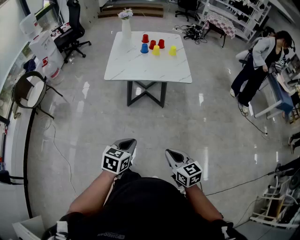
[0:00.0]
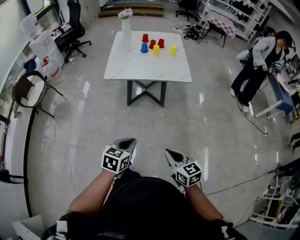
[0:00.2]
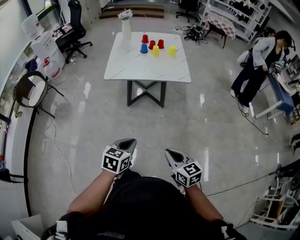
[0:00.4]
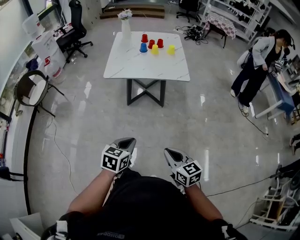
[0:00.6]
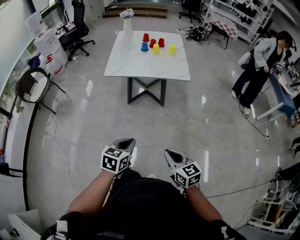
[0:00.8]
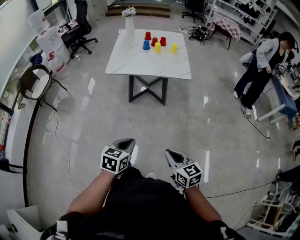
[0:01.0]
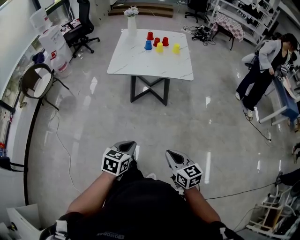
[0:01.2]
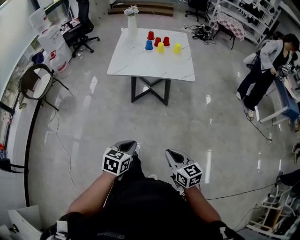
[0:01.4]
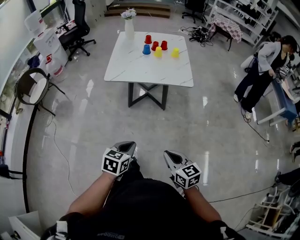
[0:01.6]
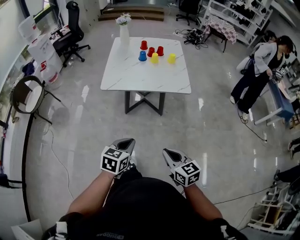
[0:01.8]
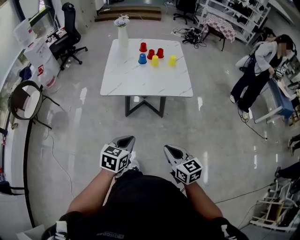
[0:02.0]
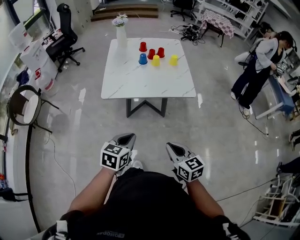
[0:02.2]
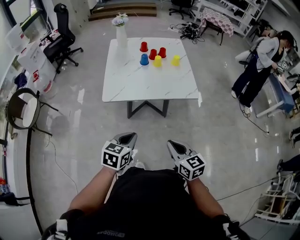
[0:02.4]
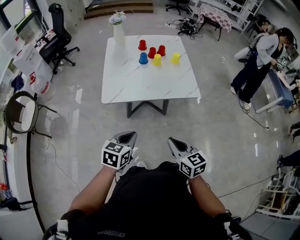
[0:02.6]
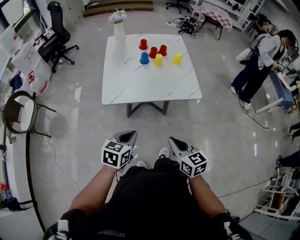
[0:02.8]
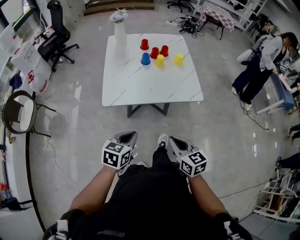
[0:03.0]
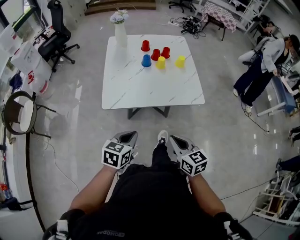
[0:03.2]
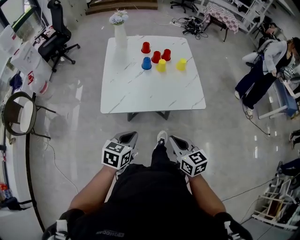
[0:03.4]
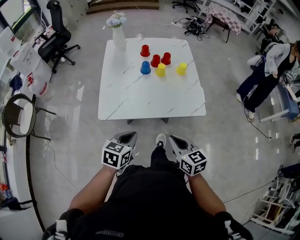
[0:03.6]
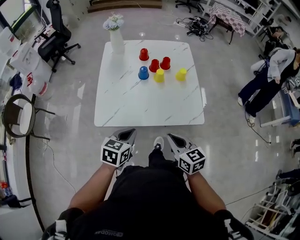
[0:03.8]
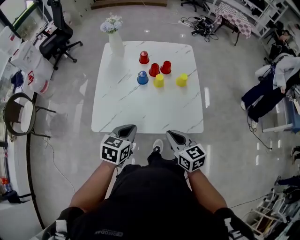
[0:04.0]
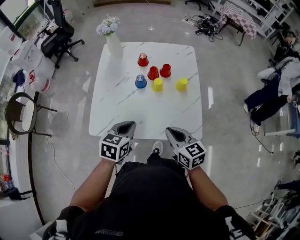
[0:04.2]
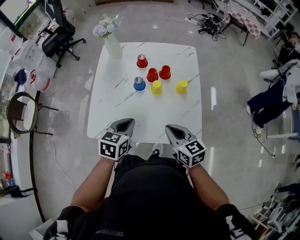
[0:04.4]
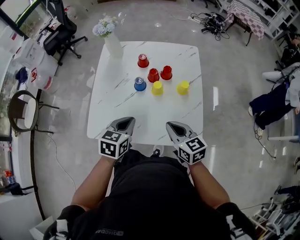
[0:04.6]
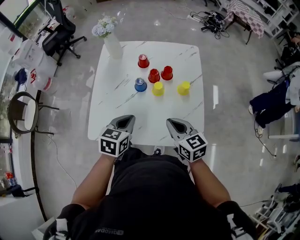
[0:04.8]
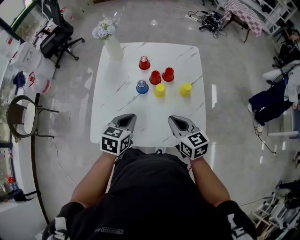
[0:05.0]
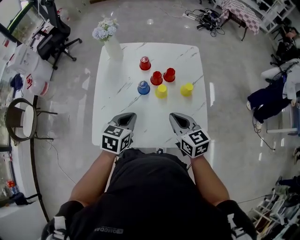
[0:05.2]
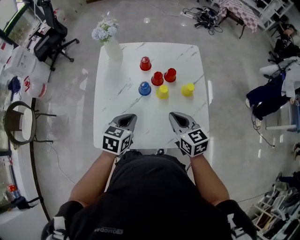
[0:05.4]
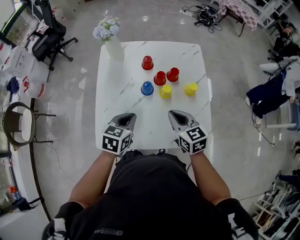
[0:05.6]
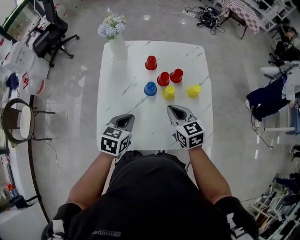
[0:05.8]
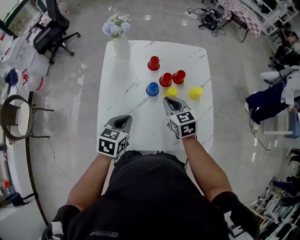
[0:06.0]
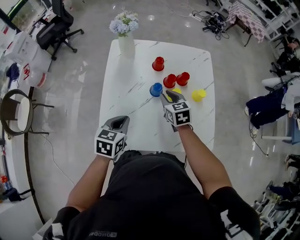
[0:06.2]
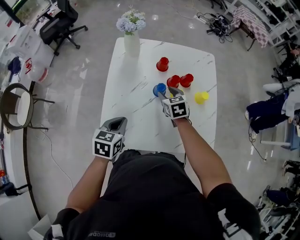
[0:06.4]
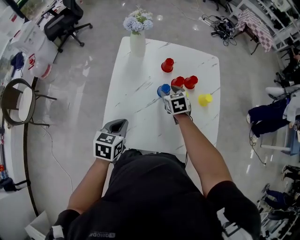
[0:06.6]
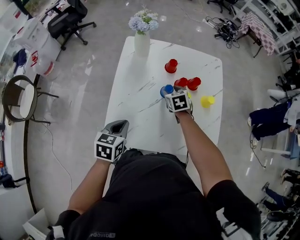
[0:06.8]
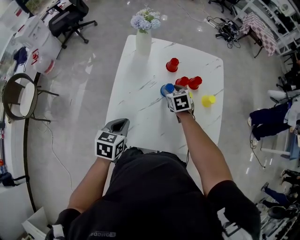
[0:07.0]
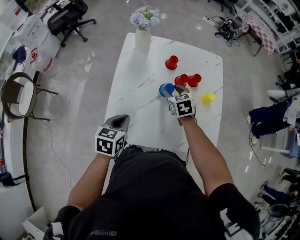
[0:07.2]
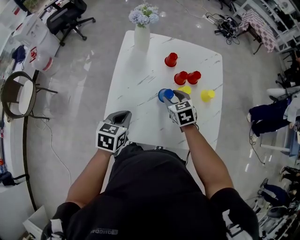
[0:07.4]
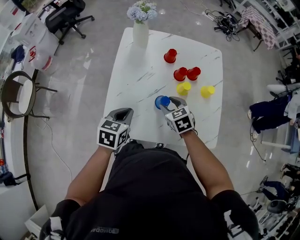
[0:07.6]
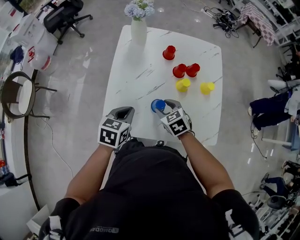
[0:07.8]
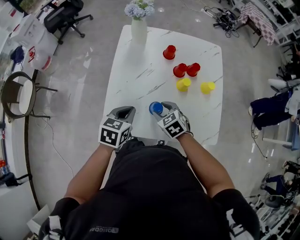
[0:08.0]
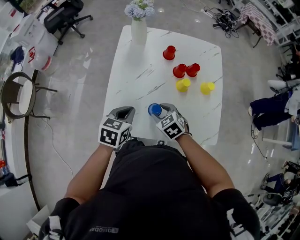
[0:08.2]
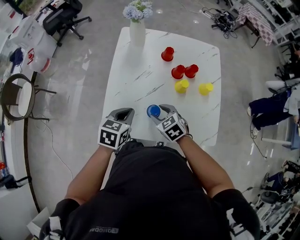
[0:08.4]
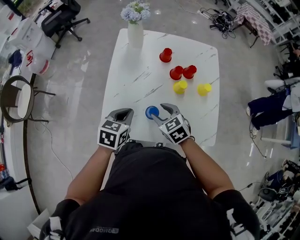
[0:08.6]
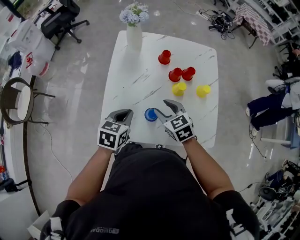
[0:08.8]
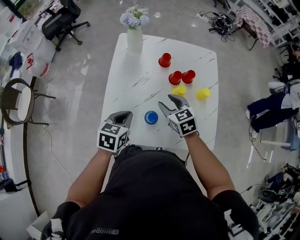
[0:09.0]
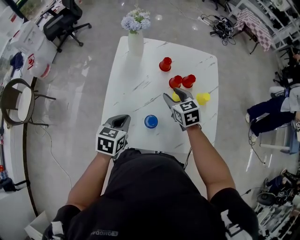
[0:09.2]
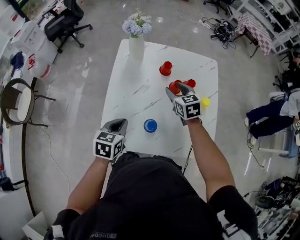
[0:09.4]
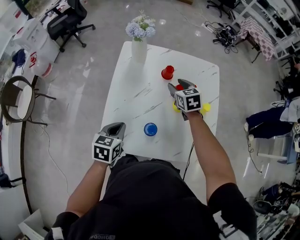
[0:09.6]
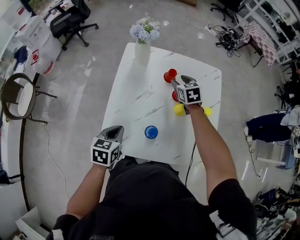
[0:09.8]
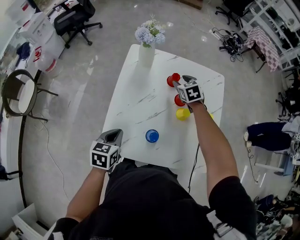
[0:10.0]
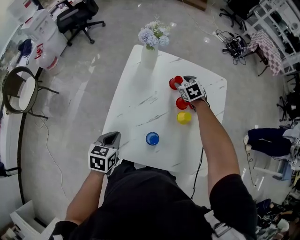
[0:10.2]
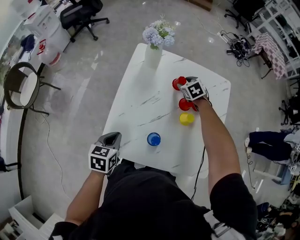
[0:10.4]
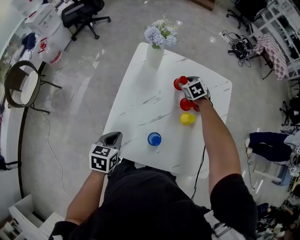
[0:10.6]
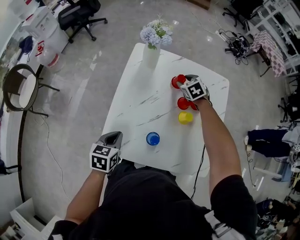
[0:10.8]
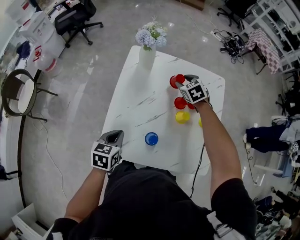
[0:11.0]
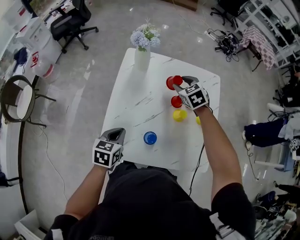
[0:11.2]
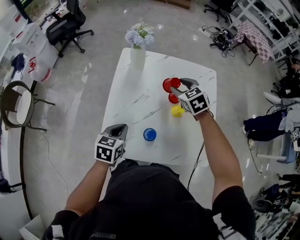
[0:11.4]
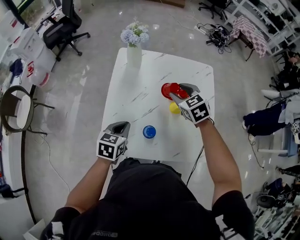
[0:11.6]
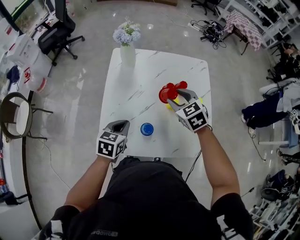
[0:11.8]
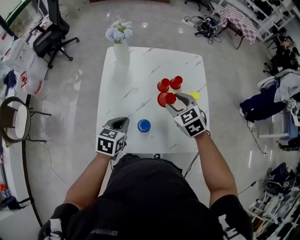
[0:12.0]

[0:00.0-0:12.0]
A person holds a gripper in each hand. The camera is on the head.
0:01.6 to 0:03.0: The left gripper travels forward and to the left by approximately 30 cm; the right gripper moves forward, about 25 cm.
0:03.0 to 0:04.4: The two grippers go approximately 35 cm forward.
0:04.4 to 0:06.0: The left gripper goes roughly 15 cm to the left and forward; the right gripper heads forward and to the left, covering approximately 20 cm.
0:06.0 to 0:07.6: The left gripper is displaced to the left by roughly 5 cm. The right gripper is displaced downward and to the left by approximately 10 cm, moves roughly 10 cm forward and comes back, turns by some 20 degrees, and opens up.
0:07.6 to 0:09.0: The right gripper ends up some 5 cm from where it was.
0:09.0 to 0:10.4: The right gripper heads forward, covering approximately 25 cm, and swivels roughly 20 degrees; the left gripper is displaced to the left by about 5 cm.
0:10.4 to 0:12.0: The left gripper is displaced to the right by about 10 cm, and rotates approximately 20 degrees, while the right gripper moves backward and upward, some 30 cm.

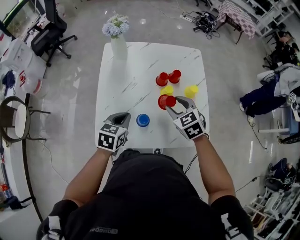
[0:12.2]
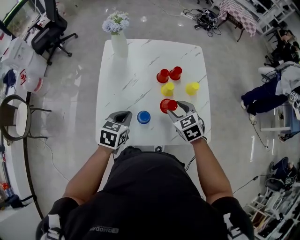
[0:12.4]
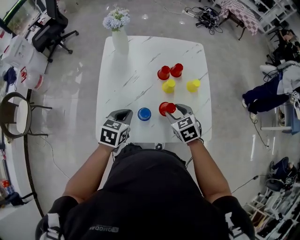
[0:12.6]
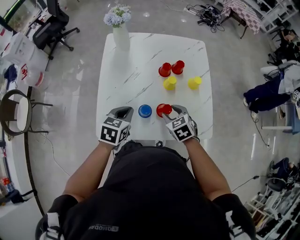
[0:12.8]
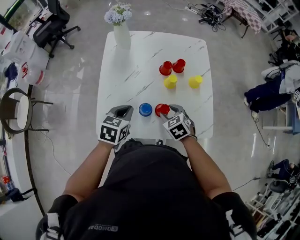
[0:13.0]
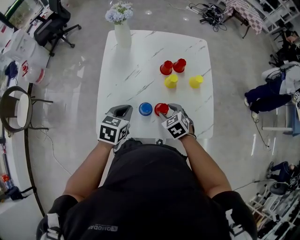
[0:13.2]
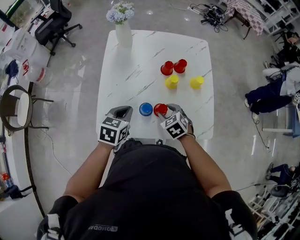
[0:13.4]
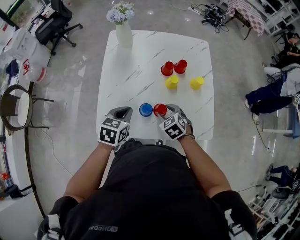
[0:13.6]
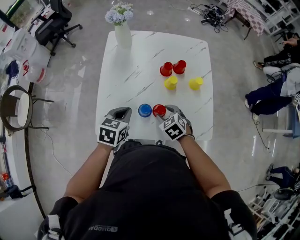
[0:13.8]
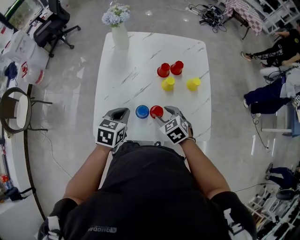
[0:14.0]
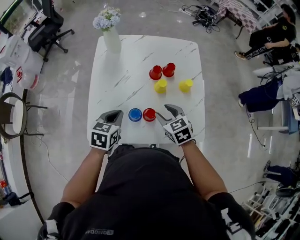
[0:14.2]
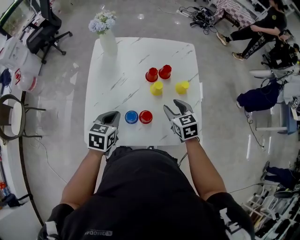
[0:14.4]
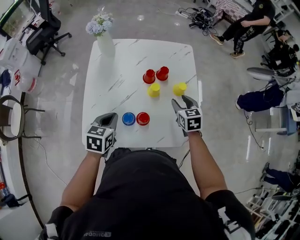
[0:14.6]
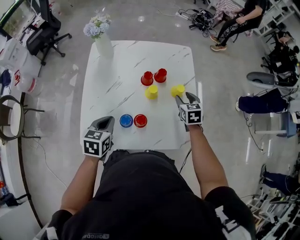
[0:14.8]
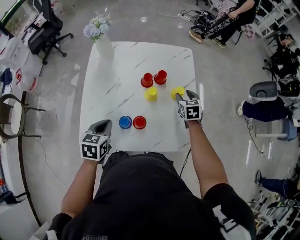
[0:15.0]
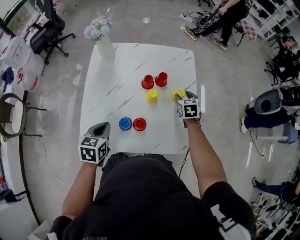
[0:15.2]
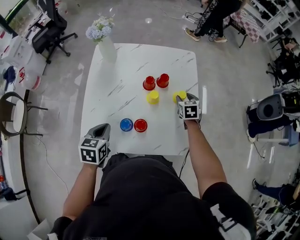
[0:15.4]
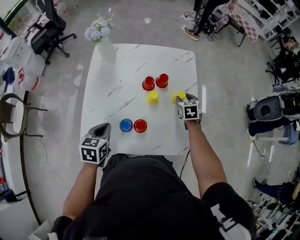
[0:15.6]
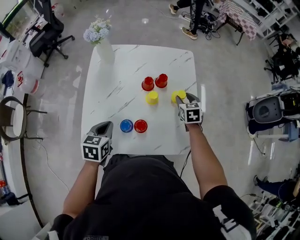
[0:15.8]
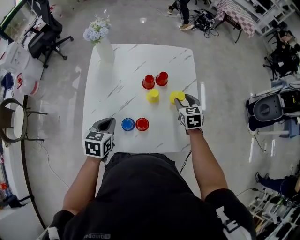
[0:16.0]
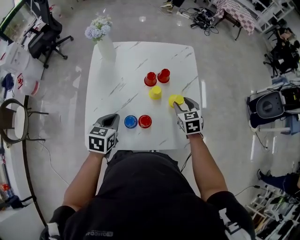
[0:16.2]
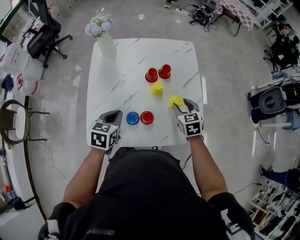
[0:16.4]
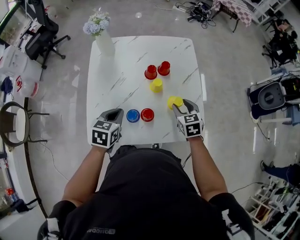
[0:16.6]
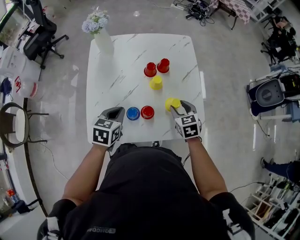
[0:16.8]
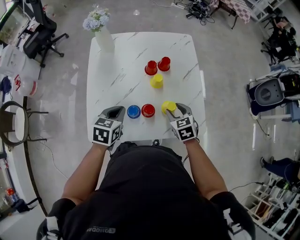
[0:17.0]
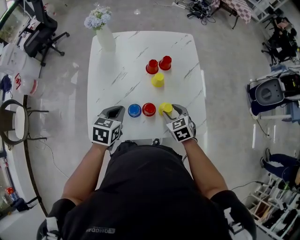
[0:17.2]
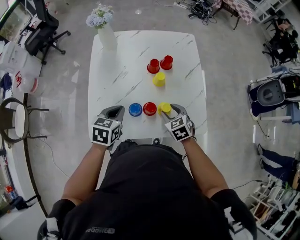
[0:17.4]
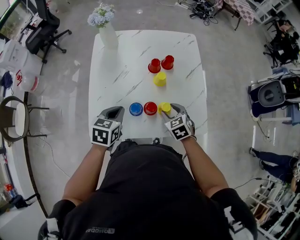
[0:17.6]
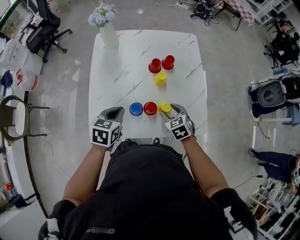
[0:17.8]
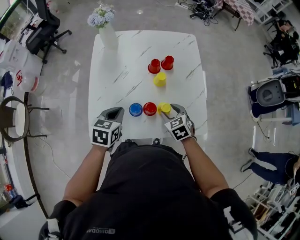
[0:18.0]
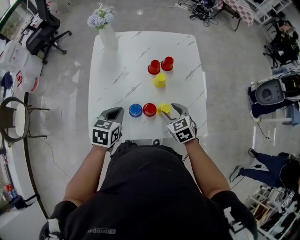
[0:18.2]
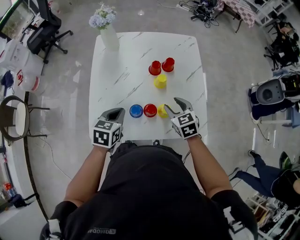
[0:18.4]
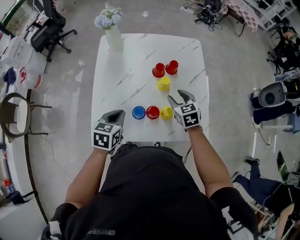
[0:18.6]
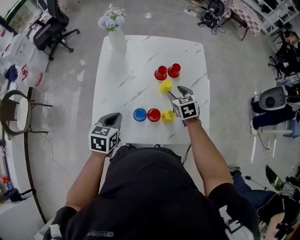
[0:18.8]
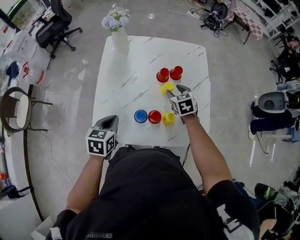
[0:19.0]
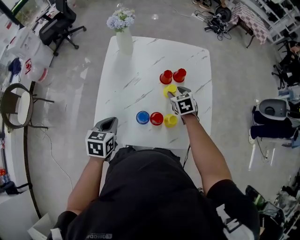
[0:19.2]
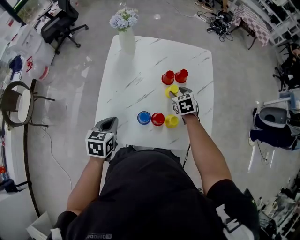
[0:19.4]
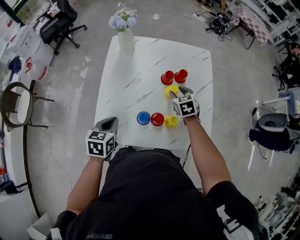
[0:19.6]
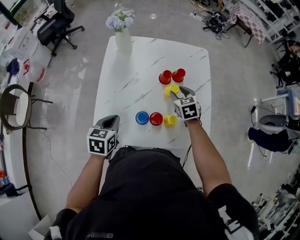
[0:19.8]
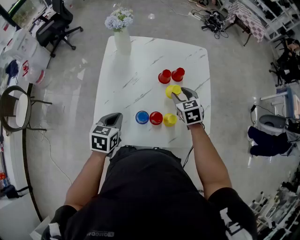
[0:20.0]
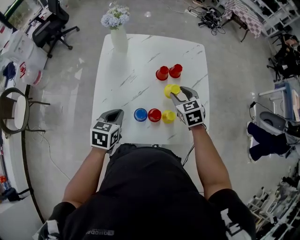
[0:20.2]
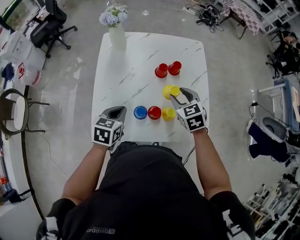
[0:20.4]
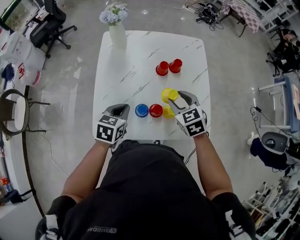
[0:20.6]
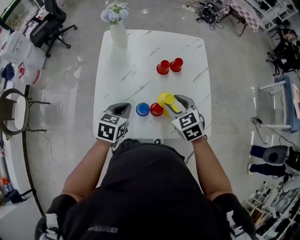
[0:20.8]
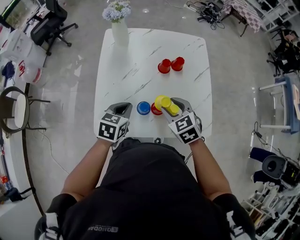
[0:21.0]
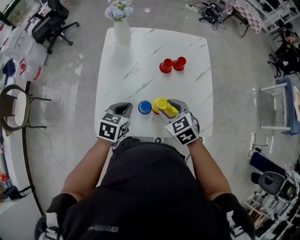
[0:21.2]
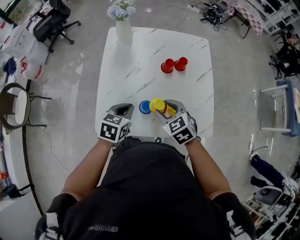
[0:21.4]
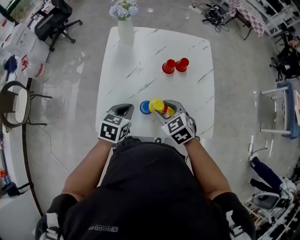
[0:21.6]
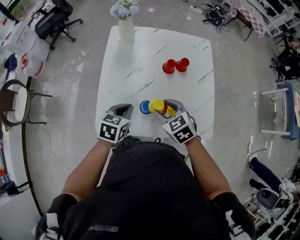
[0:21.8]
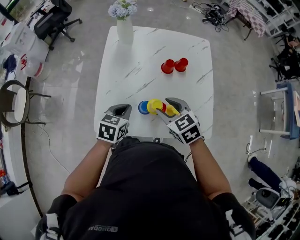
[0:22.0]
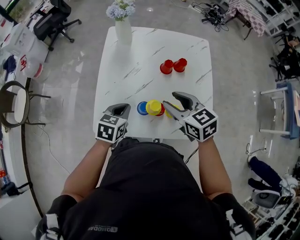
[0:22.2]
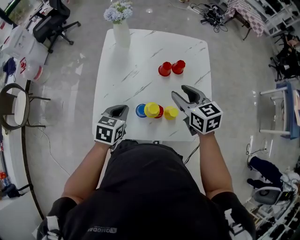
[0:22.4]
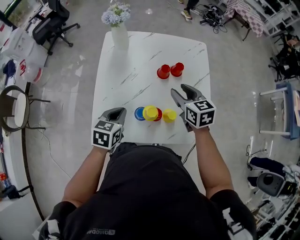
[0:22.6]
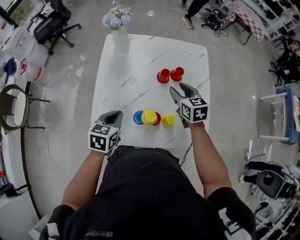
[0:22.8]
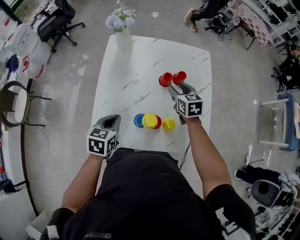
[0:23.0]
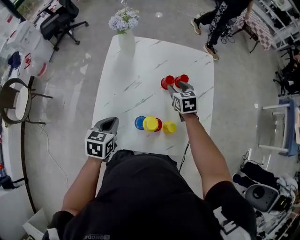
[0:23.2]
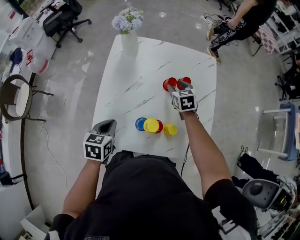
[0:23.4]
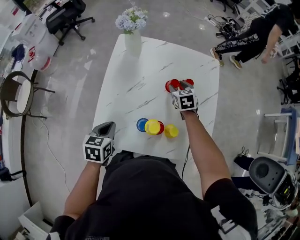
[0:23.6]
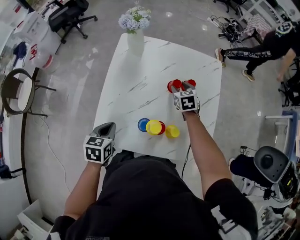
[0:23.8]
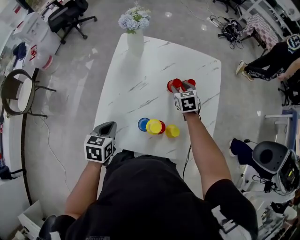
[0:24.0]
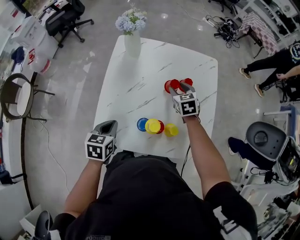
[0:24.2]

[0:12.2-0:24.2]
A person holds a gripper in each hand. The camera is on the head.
0:12.2 to 0:13.8: The right gripper travels downward and backward by roughly 15 cm.
0:13.8 to 0:15.2: The right gripper is displaced to the right and forward by roughly 30 cm, and turns by about 30 degrees.
0:15.2 to 0:16.6: The right gripper heads backward, covering approximately 15 cm.
0:16.6 to 0:18.2: The right gripper moves to the left and backward, roughly 10 cm.
0:18.2 to 0:19.8: The left gripper goes about 5 cm to the left. The right gripper shifts about 15 cm forward.
0:19.8 to 0:21.2: The right gripper shifts some 15 cm backward and to the left.
0:21.2 to 0:22.6: The right gripper shifts about 15 cm forward and to the right, and turns by about 30 degrees.
0:22.6 to 0:24.2: The left gripper travels to the left by approximately 5 cm. Meanwhile the right gripper heads forward and downward, covering some 15 cm.
